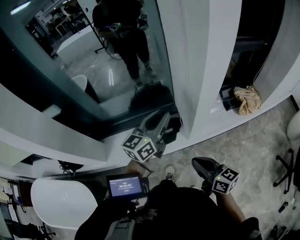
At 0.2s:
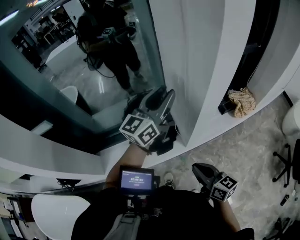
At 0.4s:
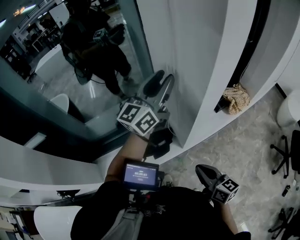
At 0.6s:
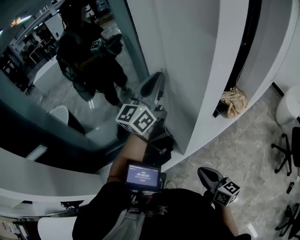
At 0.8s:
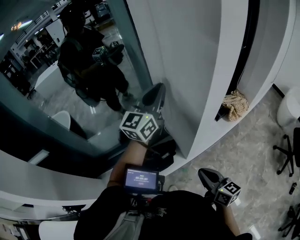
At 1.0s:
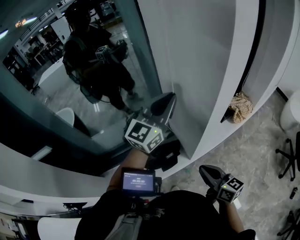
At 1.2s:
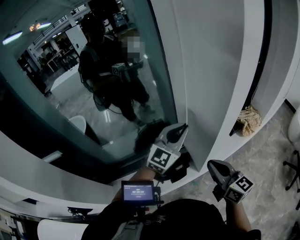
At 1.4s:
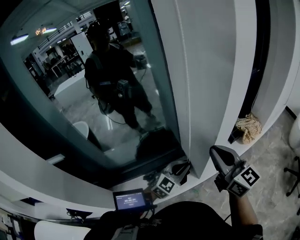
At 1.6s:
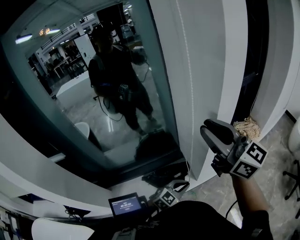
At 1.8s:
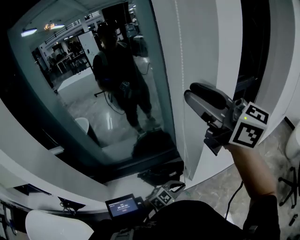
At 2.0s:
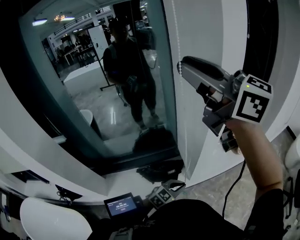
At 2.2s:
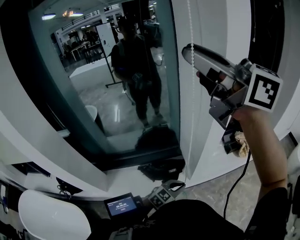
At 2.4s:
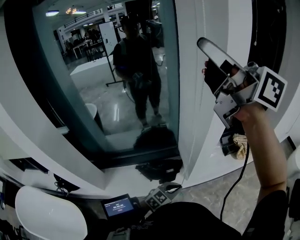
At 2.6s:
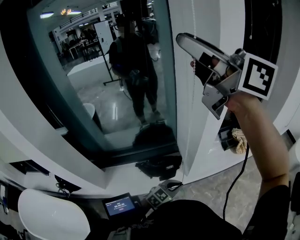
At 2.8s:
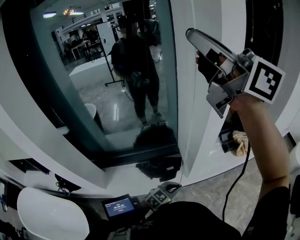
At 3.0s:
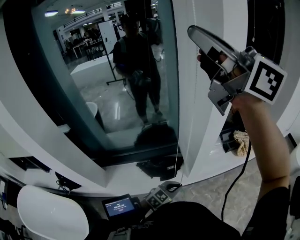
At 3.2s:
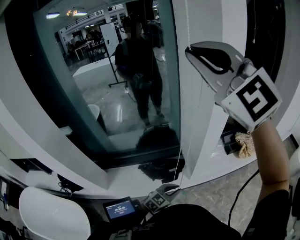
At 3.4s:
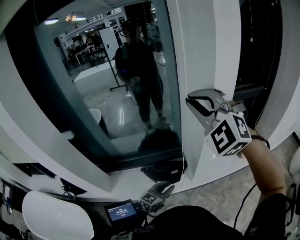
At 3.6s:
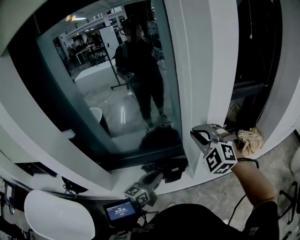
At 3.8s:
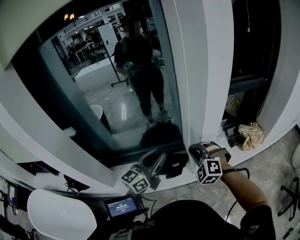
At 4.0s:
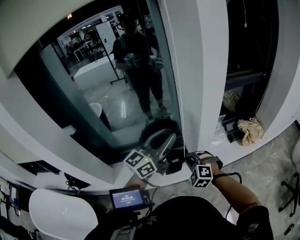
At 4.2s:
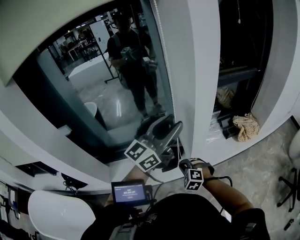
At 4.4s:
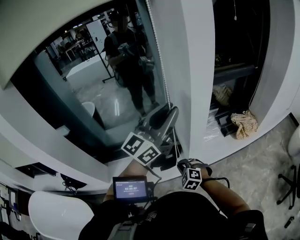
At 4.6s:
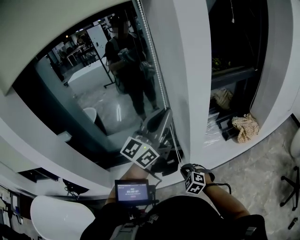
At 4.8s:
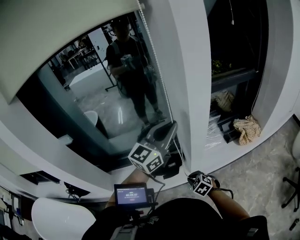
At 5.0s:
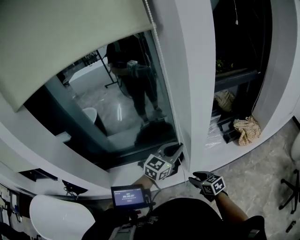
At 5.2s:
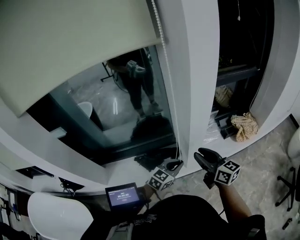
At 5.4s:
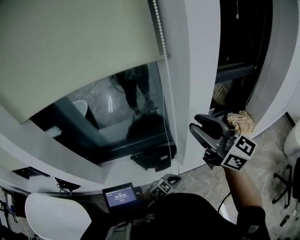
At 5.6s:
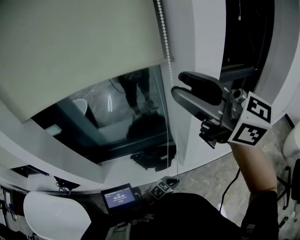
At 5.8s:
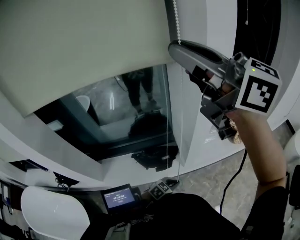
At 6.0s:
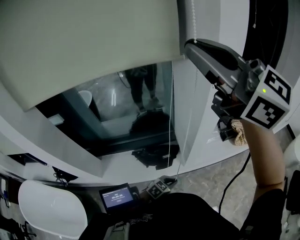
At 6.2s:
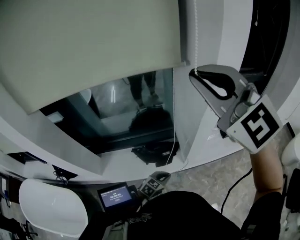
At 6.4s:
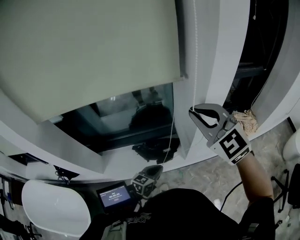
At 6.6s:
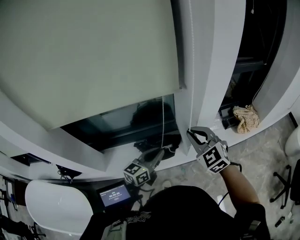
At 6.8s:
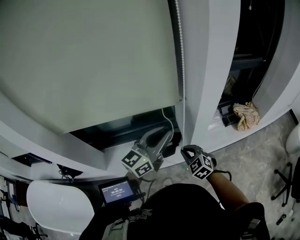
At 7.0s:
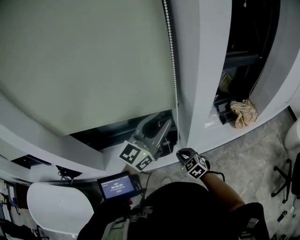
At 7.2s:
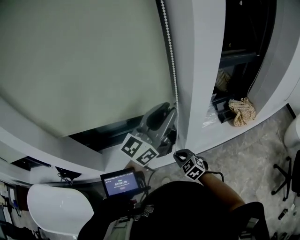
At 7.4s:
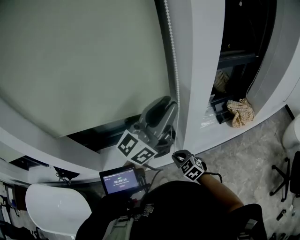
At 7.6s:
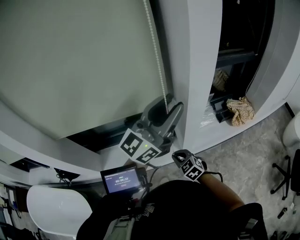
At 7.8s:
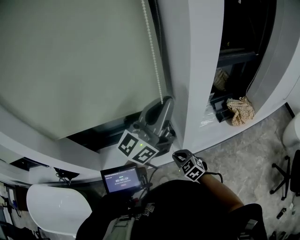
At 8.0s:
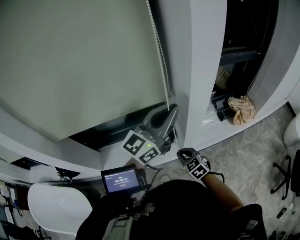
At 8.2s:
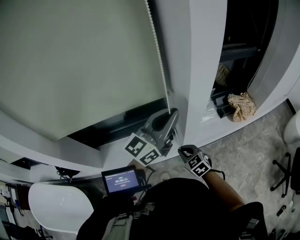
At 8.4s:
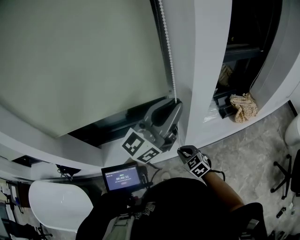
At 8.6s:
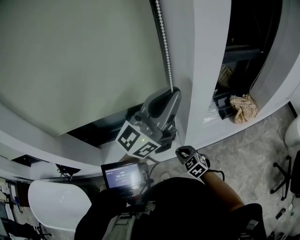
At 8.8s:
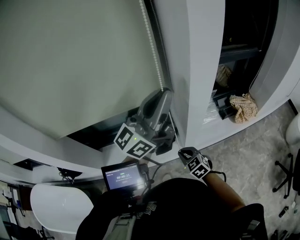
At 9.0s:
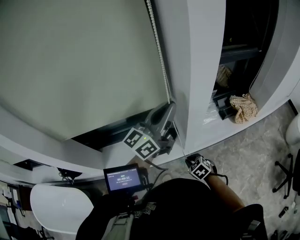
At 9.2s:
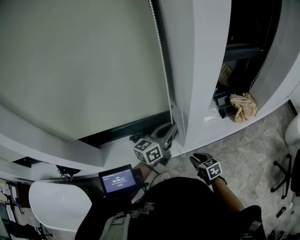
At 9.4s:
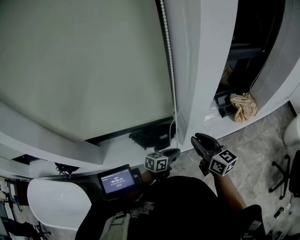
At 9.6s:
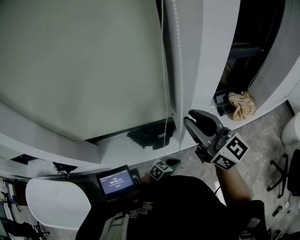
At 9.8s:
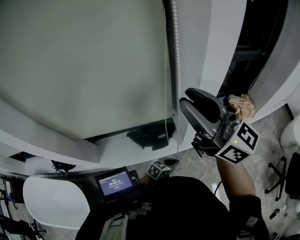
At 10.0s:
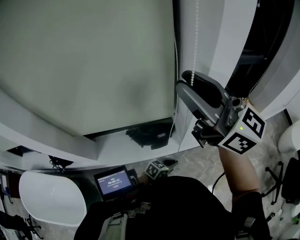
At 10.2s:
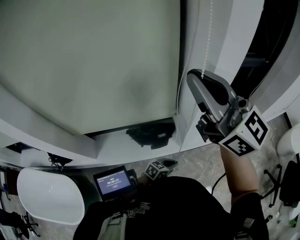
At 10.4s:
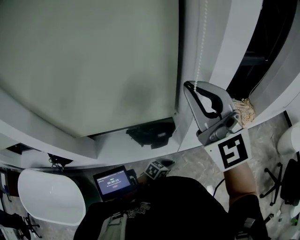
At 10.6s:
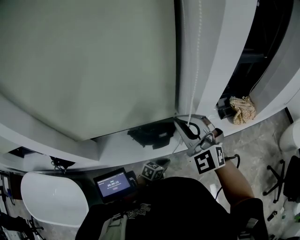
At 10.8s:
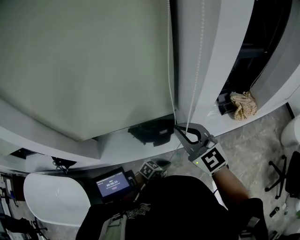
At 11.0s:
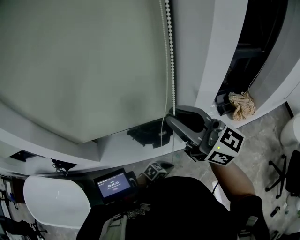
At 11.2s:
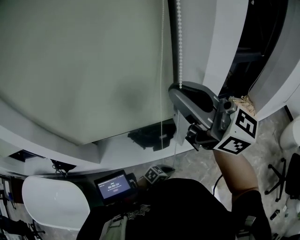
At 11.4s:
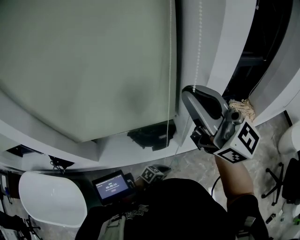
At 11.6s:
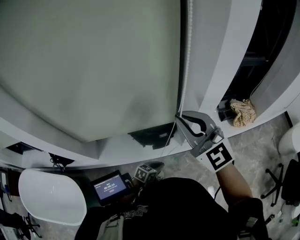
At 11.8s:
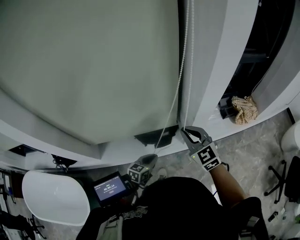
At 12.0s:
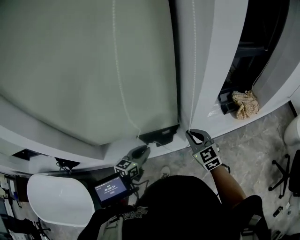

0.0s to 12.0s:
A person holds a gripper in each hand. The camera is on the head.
0.0s to 1.6s: The right gripper goes approximately 35 cm upward and forward, and rotates some 40 degrees. The left gripper travels downward by approximately 20 cm, and tilts its fingers roughly 30 degrees downward.
1.6s to 3.0s: The right gripper is displaced upward by roughly 25 cm, and turns by some 20 degrees. The left gripper shifts about 5 cm backward.
3.0s to 4.4s: The left gripper shifts approximately 40 cm upward, angles its fingers upward, by some 50 degrees, and opens; the right gripper goes about 70 cm downward, and angles its fingers downward, by roughly 70 degrees.
4.4s to 6.0s: The left gripper travels downward by some 50 cm, points its fingers approximately 70 degrees further downward, and closes. The right gripper travels upward by approximately 60 cm, points its fingers approximately 60 degrees further upward, and opens, then closes once more.
6.0s to 7.6s: The right gripper shifts roughly 60 cm downward, and tilts its fingers roughly 50 degrees downward, while the left gripper travels upward by approximately 50 cm, tips its fingers upward by about 70 degrees, and opens.
7.6s to 9.0s: The left gripper goes up and down, about 10 cm each way, reversing 2 times, and closes; the right gripper goes approximately 10 cm downward and to the right.
9.0s to 10.4s: The right gripper travels upward by approximately 50 cm, tips its fingers upward by roughly 70 degrees, and opens, then closes once more. Meanwhile the left gripper heads downward, covering approximately 40 cm, and points its fingers some 60 degrees further downward.
10.4s to 12.0s: The left gripper shifts by roughly 20 cm, and rotates about 30 degrees; the right gripper goes up and down, some 35 cm each way, reversing 2 times, and angles its fingers downward, by roughly 40 degrees.

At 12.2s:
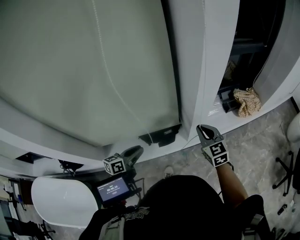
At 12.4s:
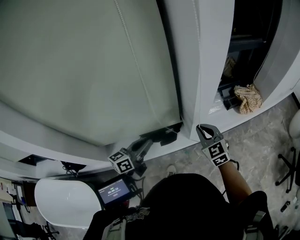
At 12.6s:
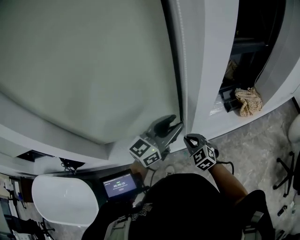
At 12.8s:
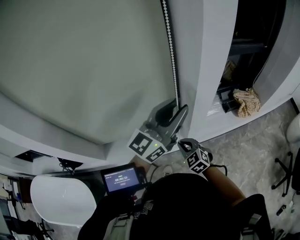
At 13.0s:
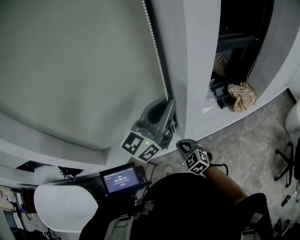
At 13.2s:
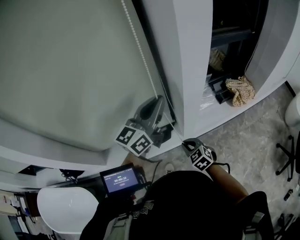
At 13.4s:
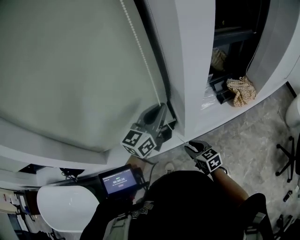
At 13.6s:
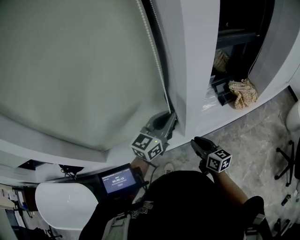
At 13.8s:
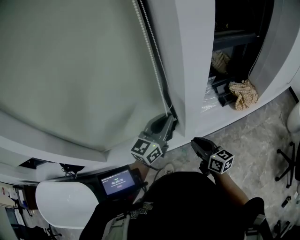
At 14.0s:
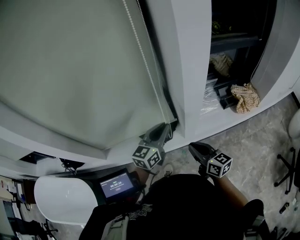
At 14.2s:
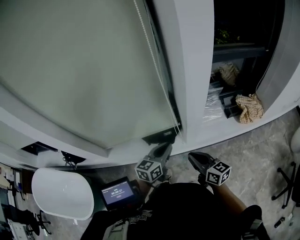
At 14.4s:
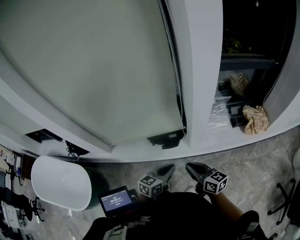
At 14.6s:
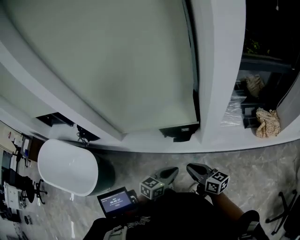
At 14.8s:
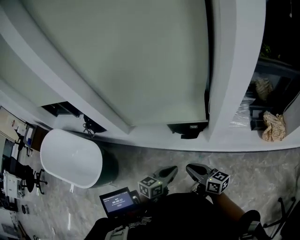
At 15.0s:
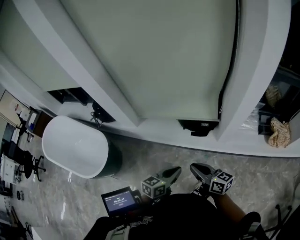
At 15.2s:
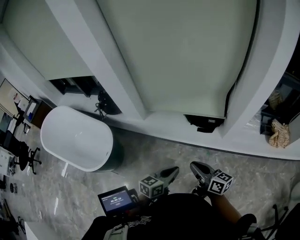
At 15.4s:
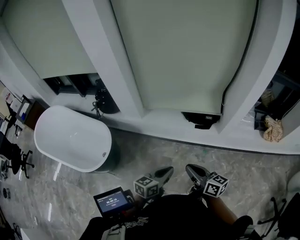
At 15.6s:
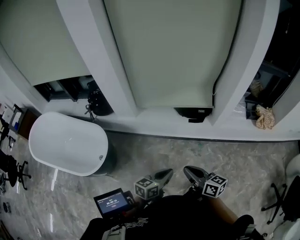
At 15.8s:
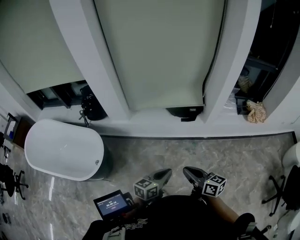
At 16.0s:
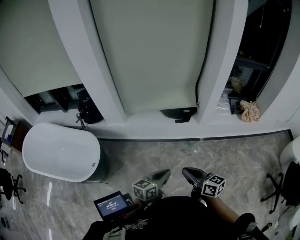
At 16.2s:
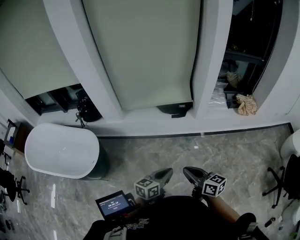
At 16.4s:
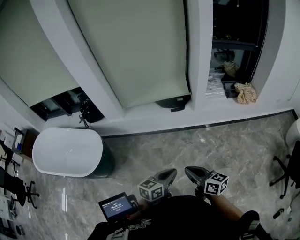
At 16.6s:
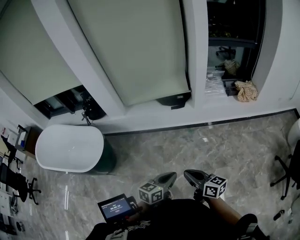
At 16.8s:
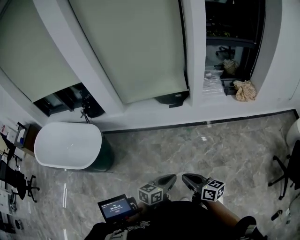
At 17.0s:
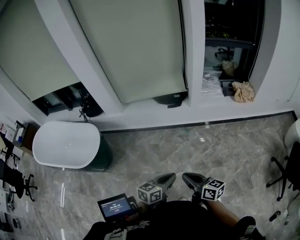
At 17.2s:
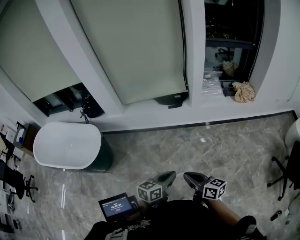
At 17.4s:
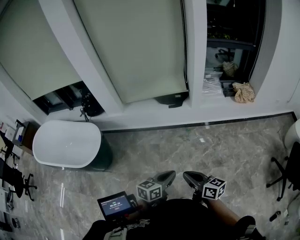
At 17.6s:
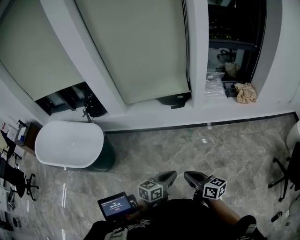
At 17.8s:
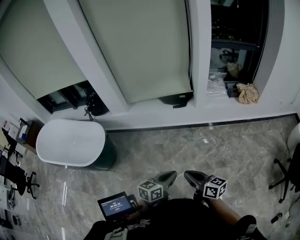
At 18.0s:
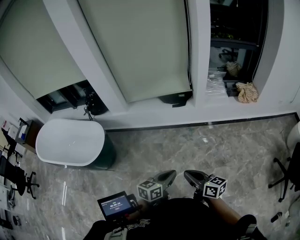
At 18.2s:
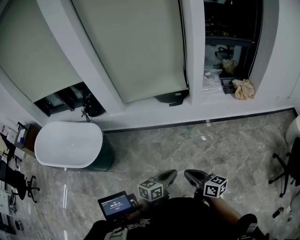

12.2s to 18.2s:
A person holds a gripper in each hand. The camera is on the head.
12.2s to 13.8s: The right gripper travels backward by some 5 cm, goes to the left and returns, roughly 10 cm each way, and turns by roughly 40 degrees. Meanwhile the left gripper heads to the right, upward and forward, covering approximately 25 cm, rotates some 30 degrees, and closes its fingers.
13.8s to 15.2s: The left gripper changes place by approximately 40 cm, and changes its angle by about 40 degrees, while the right gripper shifts by roughly 30 cm, and changes its angle by roughly 40 degrees.
15.2s to 16.6s: The two grippers go roughly 30 cm backward.
16.6s to 18.2s: The grippers make only small movements.

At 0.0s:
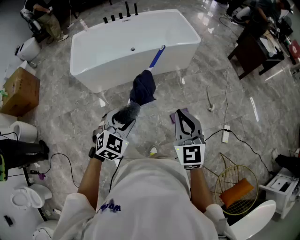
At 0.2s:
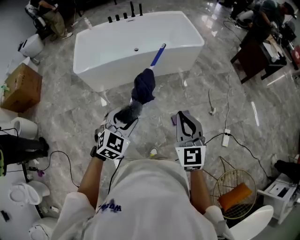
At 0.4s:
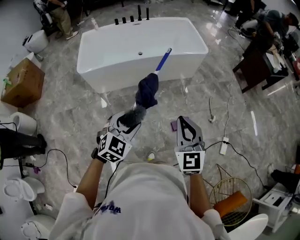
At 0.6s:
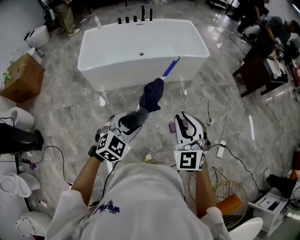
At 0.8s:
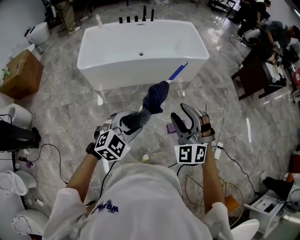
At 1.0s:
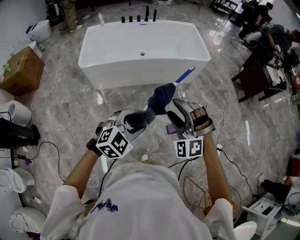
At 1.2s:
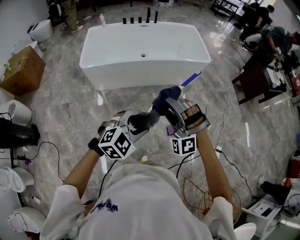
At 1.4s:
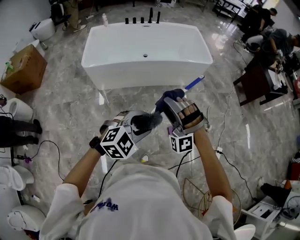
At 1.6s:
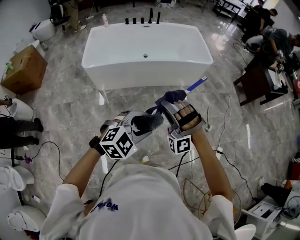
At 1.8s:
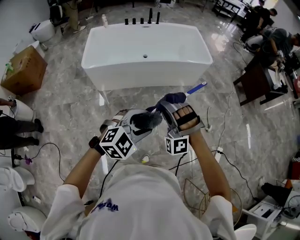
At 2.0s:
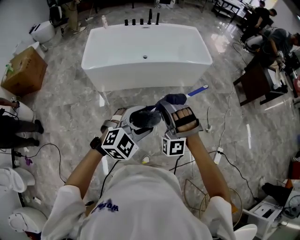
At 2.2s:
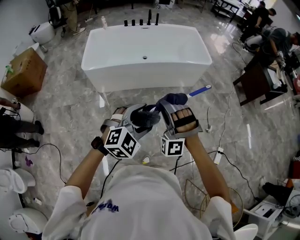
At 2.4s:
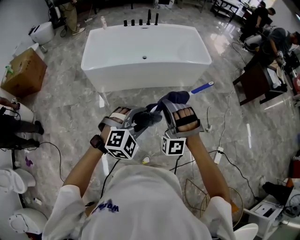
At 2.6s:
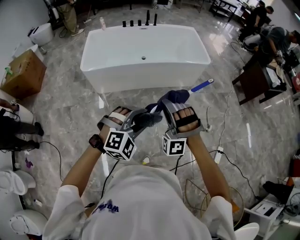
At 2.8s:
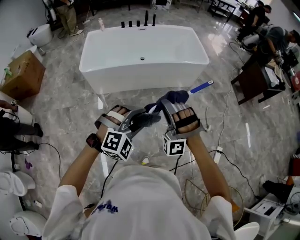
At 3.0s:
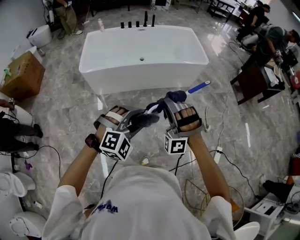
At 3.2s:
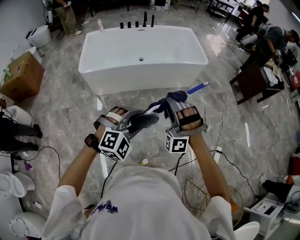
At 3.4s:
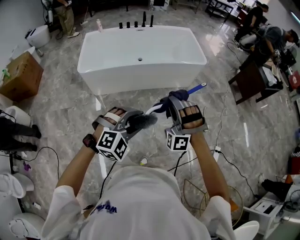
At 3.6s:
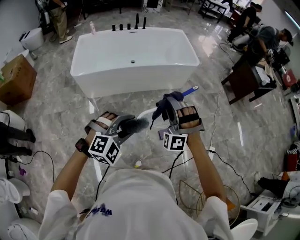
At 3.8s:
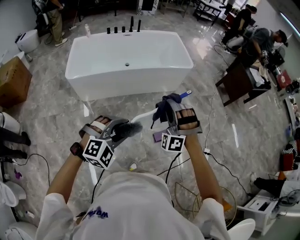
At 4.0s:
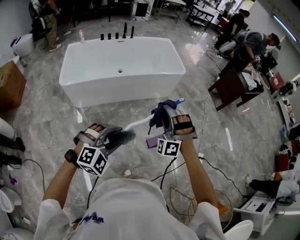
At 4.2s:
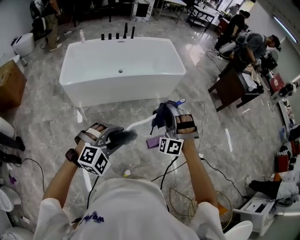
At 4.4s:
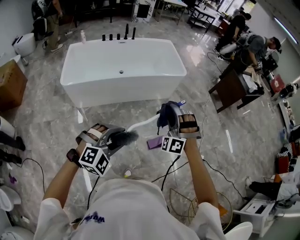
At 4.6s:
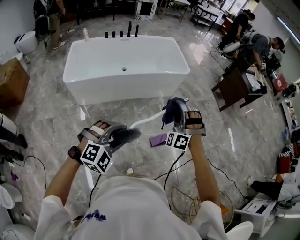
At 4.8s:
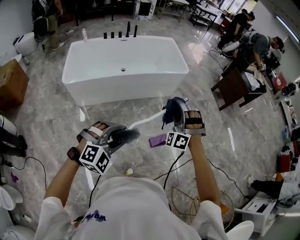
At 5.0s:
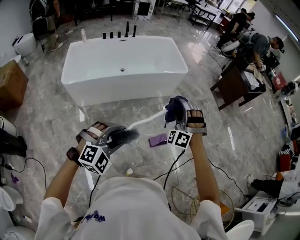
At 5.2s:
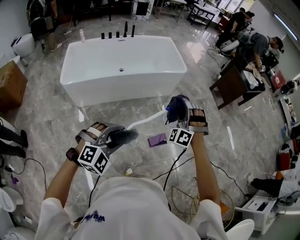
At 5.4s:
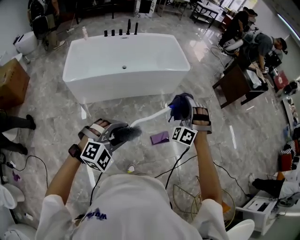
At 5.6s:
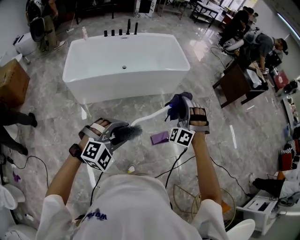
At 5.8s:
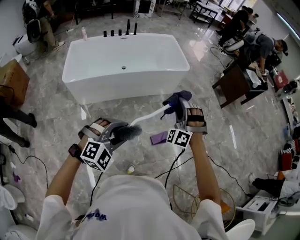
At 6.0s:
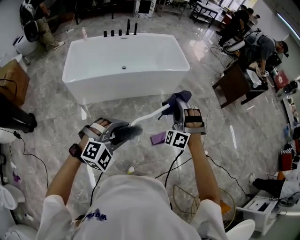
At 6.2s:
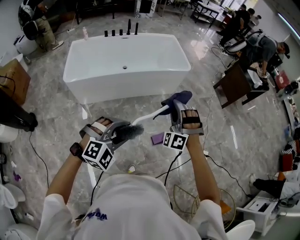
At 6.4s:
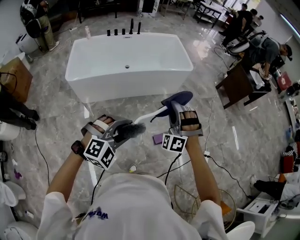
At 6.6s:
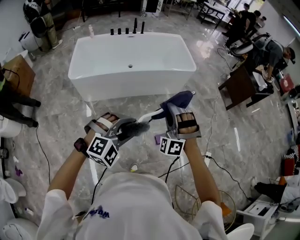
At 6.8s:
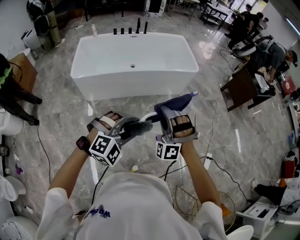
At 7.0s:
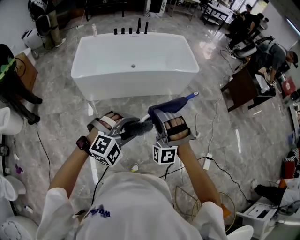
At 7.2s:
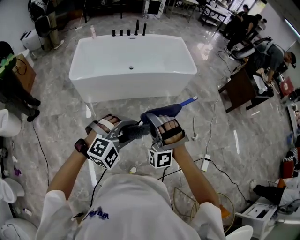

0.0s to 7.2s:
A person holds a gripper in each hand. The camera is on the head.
0.0s to 1.4s: The left gripper ends up about 5 cm from where it was.
1.4s to 2.8s: The left gripper turns by roughly 30 degrees.
